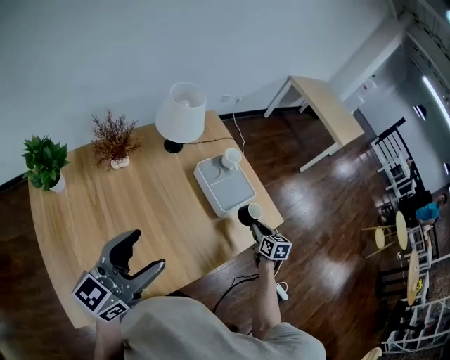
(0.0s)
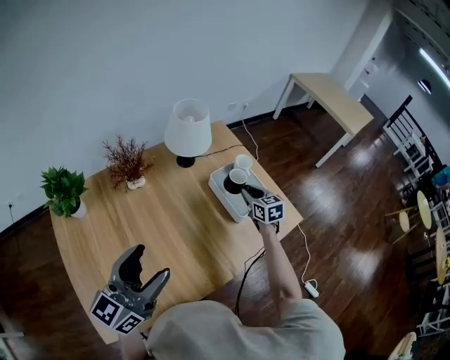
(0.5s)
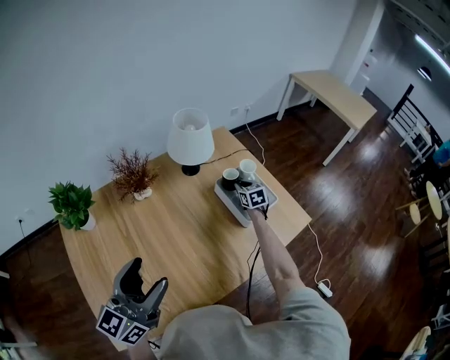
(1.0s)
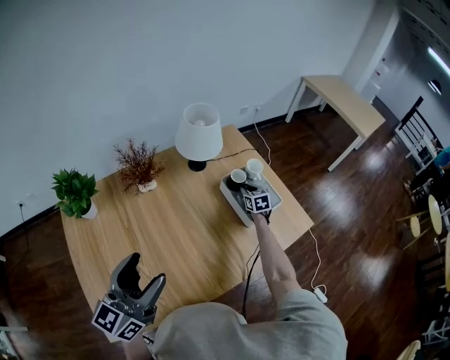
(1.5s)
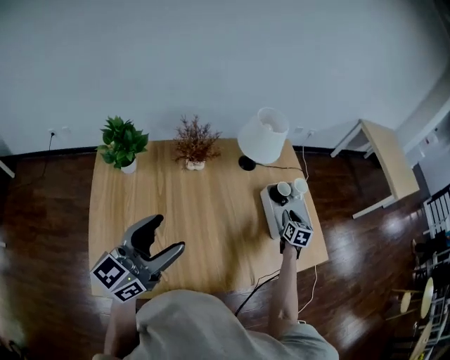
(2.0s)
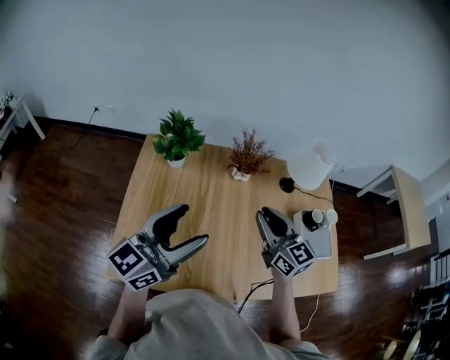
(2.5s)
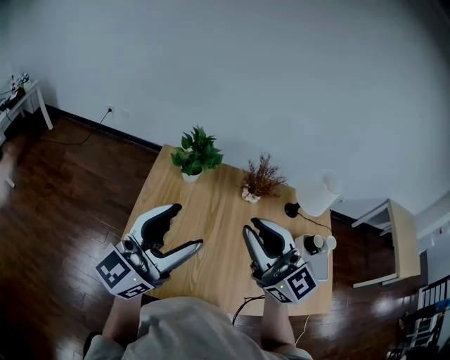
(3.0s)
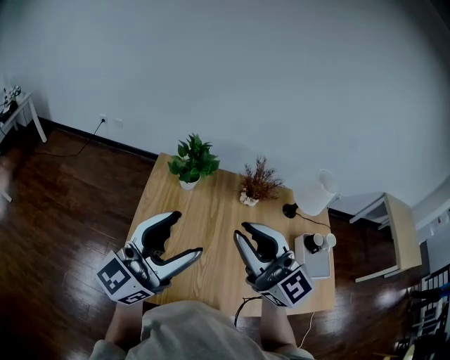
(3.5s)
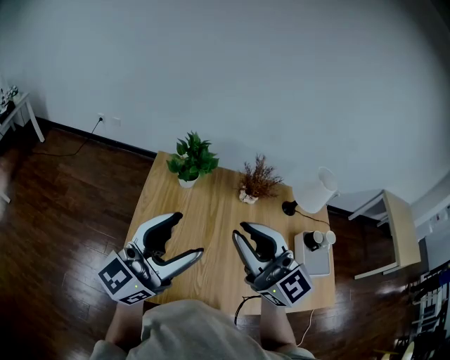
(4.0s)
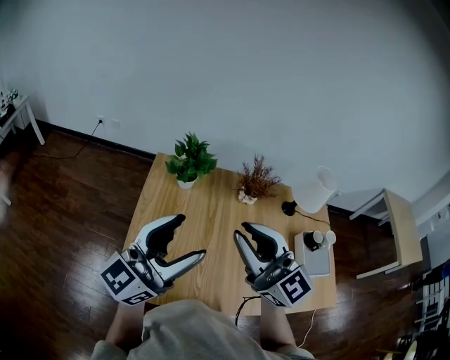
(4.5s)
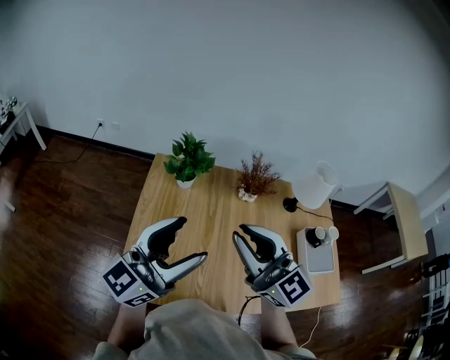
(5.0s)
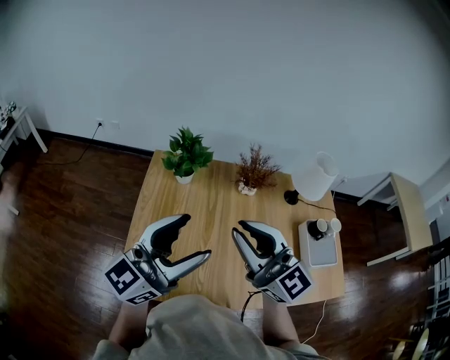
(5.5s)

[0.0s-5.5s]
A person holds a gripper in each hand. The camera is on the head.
0.0s to 2.0s: The left gripper heads to the left, covering about 10 cm. The right gripper heads to the left and forward, covering some 20 cm.
2.0s to 3.5s: The right gripper changes place by roughly 70 cm, and tips its fingers upward by roughly 40 degrees, while the left gripper changes place by some 20 cm, and turns by roughly 20 degrees.
3.5s to 5.5s: The left gripper travels to the right by about 5 cm.

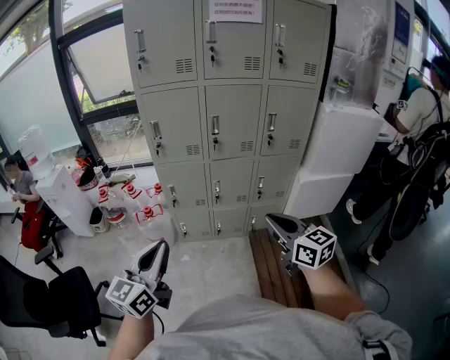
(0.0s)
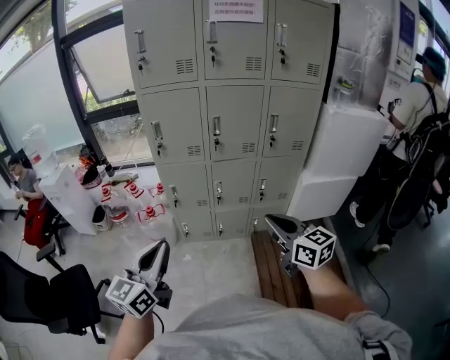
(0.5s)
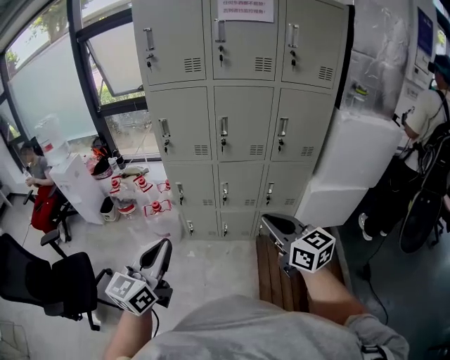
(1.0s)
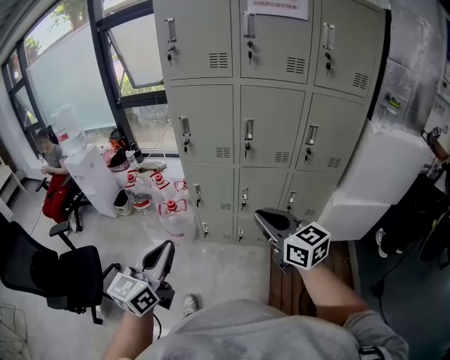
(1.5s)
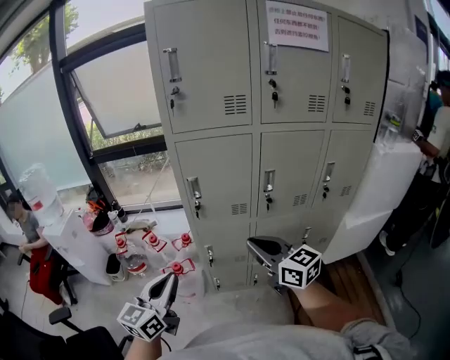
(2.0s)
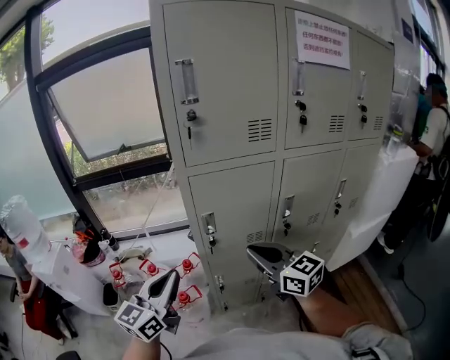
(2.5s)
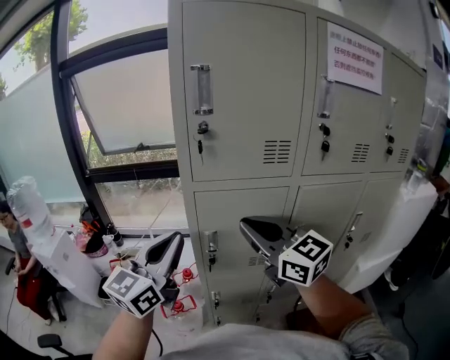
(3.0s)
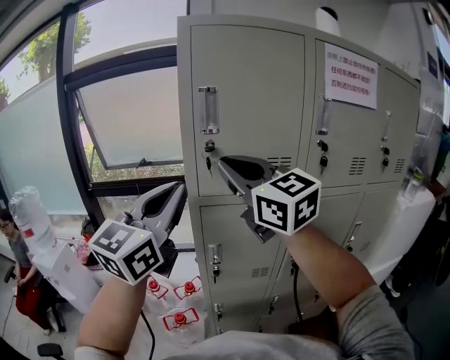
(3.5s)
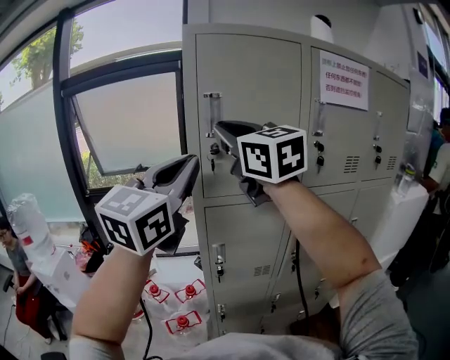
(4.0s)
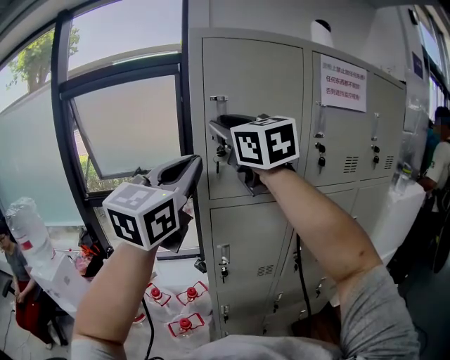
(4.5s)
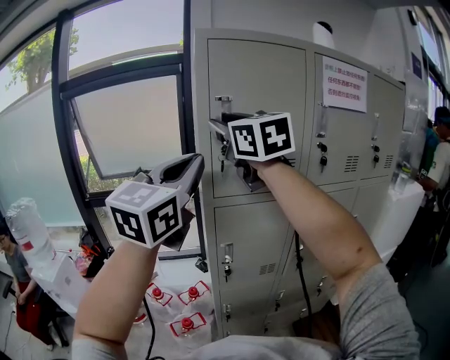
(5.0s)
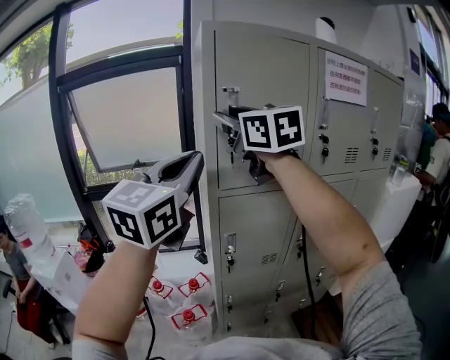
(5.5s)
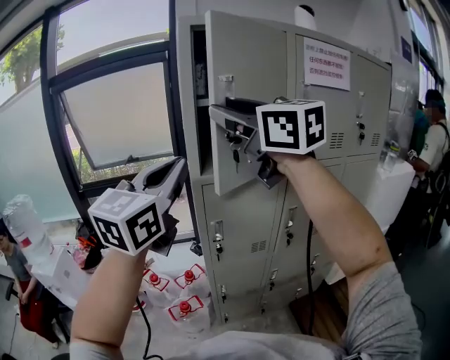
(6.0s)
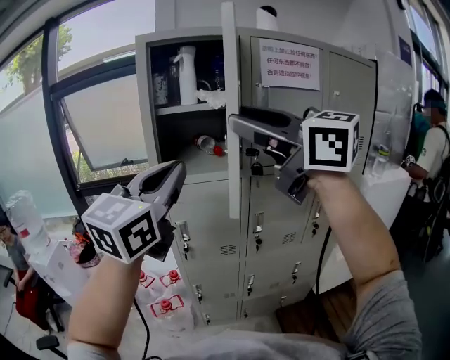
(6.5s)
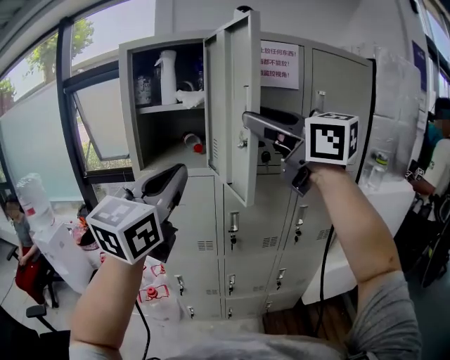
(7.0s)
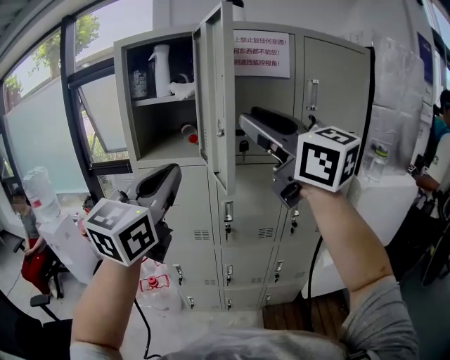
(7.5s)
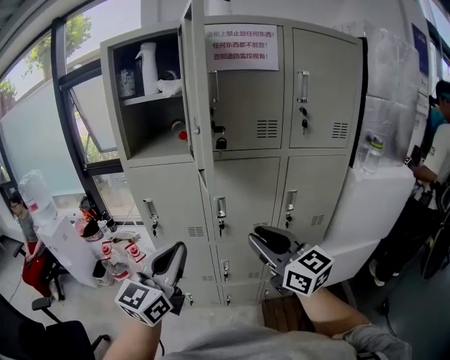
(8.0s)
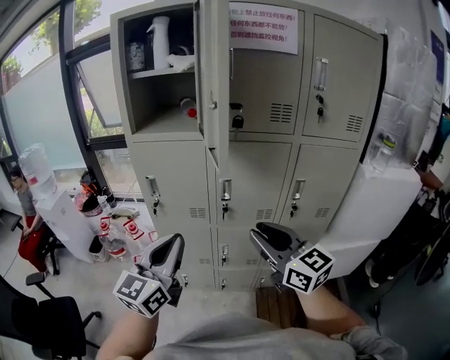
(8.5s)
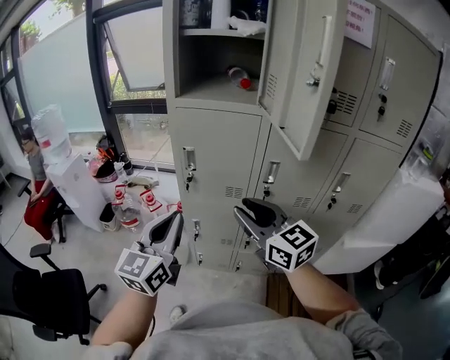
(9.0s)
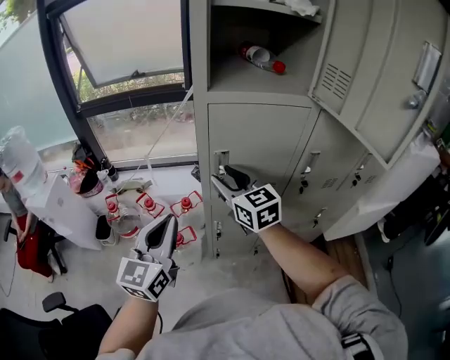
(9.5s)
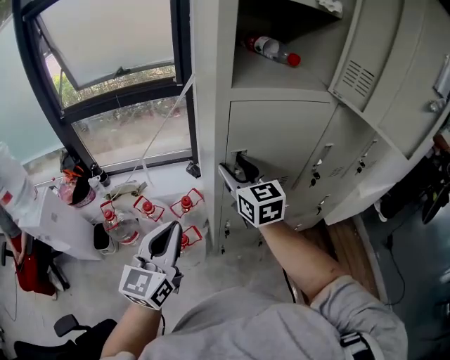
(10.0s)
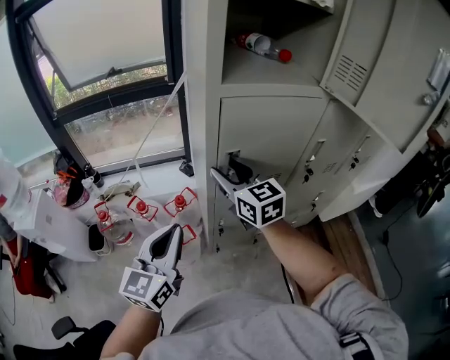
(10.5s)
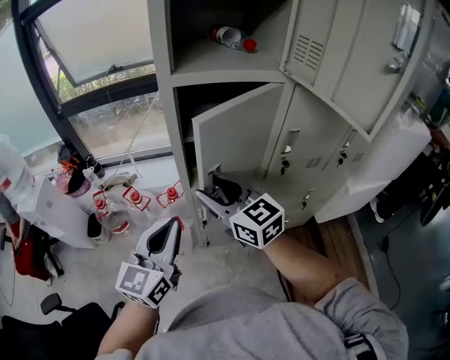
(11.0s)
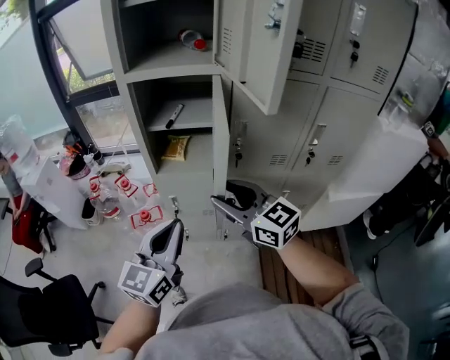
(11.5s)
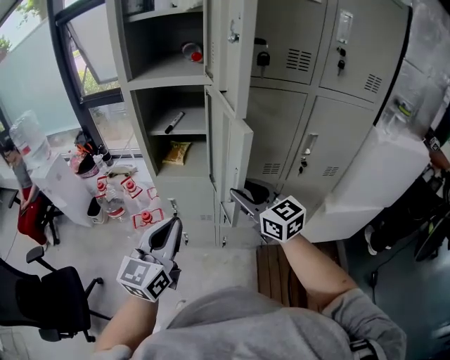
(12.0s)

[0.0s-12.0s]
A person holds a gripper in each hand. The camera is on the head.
0.0s to 2.0s: The grippers both shift forward and to the left by approximately 35 cm.
2.0s to 4.0s: The grippers both shift upward and forward by approximately 50 cm. The left gripper rotates approximately 30 degrees. The right gripper turns by approximately 30 degrees.
4.0s to 6.0s: The right gripper travels backward by roughly 5 cm, and opens up. Meanwhile the left gripper ends up some 5 cm from where it was.
6.0s to 8.0s: The grippers both shift to the right, downward and backward by some 40 cm.
8.0s to 10.0s: The pair of grippers is taken some 40 cm. The right gripper rotates some 30 degrees, and opens its fingers.
10.0s to 12.0s: The grippers both shift to the right and backward by some 40 cm. The right gripper turns by about 30 degrees.

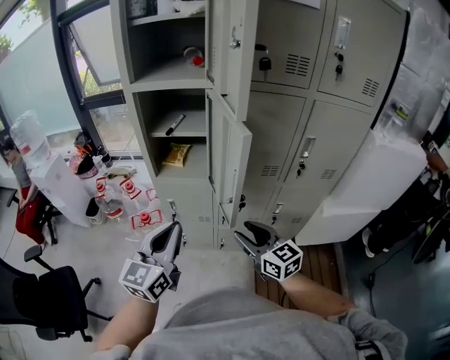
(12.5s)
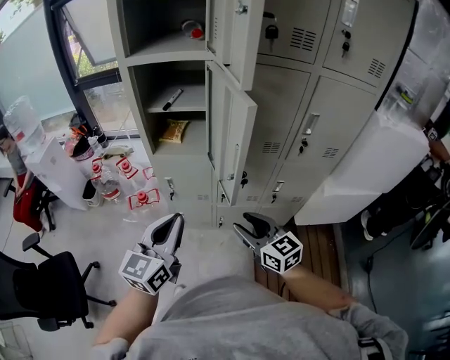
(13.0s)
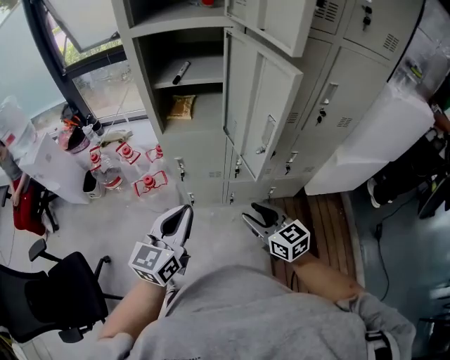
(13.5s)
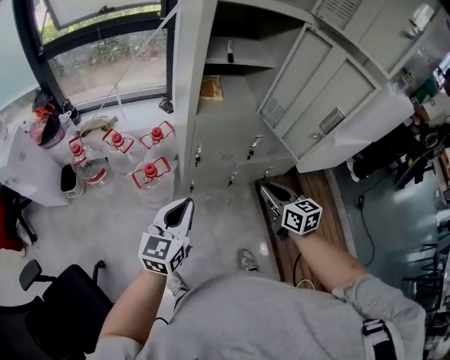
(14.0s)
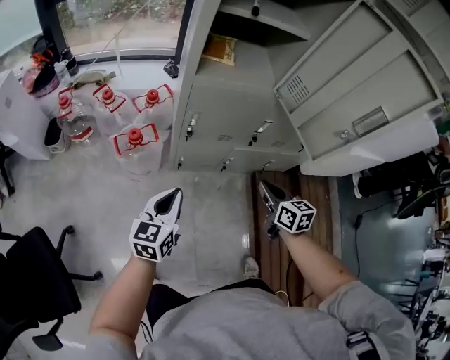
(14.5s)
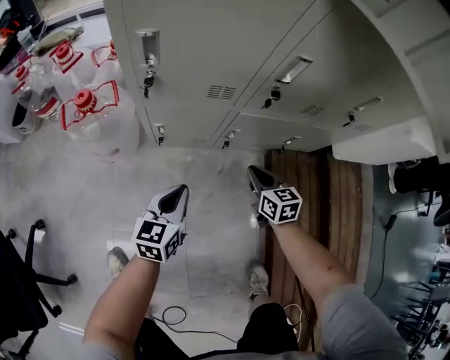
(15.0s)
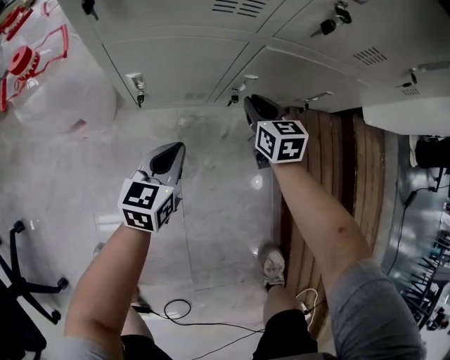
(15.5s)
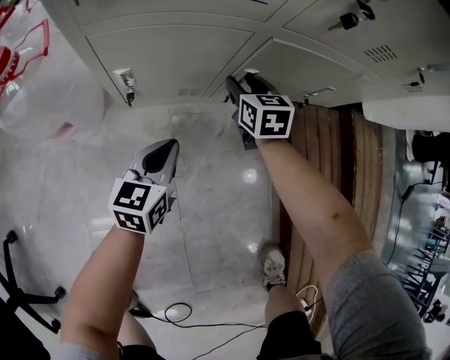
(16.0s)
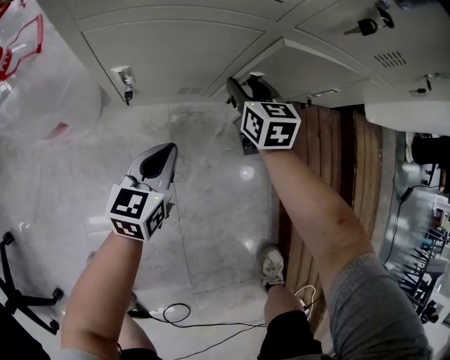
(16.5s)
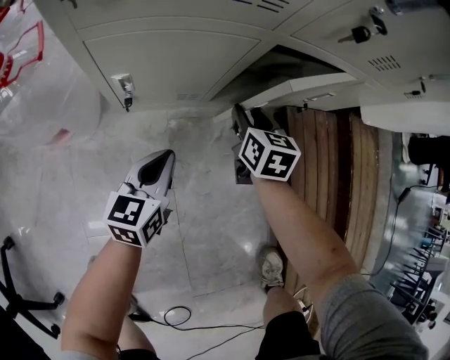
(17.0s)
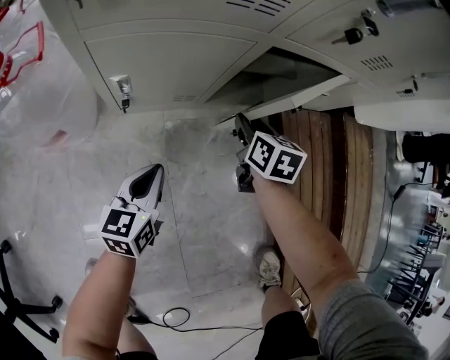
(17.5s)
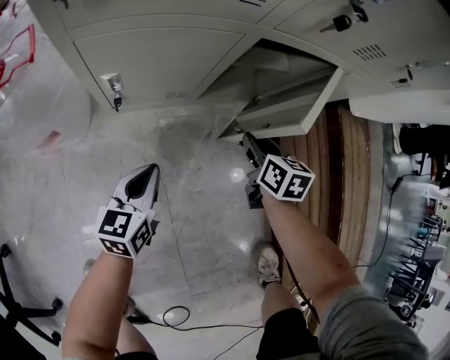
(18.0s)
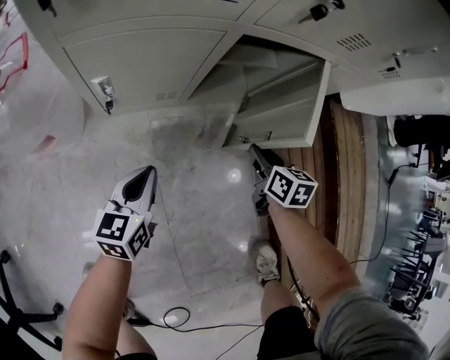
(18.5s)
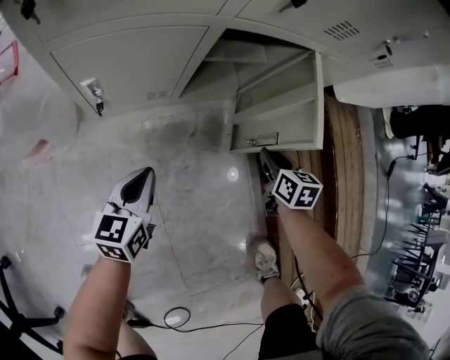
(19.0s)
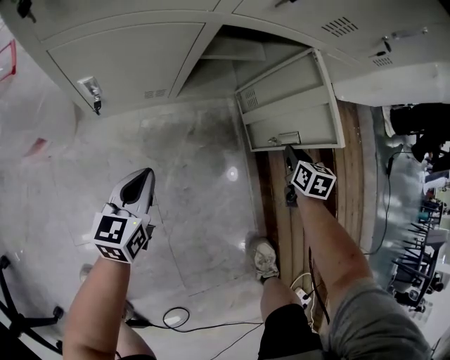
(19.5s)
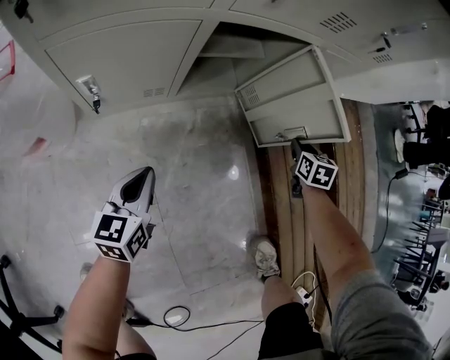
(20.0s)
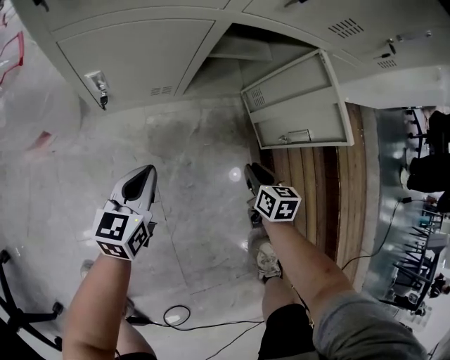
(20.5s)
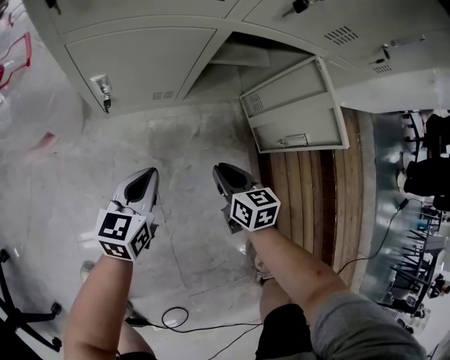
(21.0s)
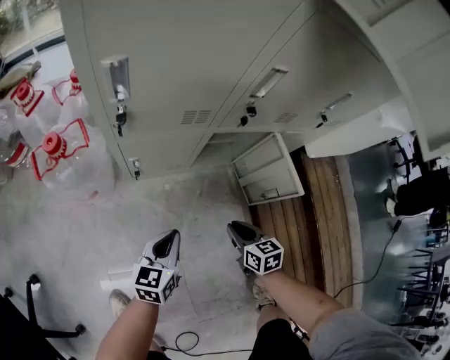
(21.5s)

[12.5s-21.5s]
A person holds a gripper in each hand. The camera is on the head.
12.5s to 14.5s: The grippers both shift downward and to the left by about 35 cm. The right gripper swivels roughly 30 degrees, and closes; the left gripper changes its angle by approximately 20 degrees.
14.5s to 17.0s: Both grippers move downward, approximately 50 cm. The right gripper opens.
17.0s to 19.5s: The right gripper moves to the right, approximately 30 cm, and turns by some 20 degrees; the left gripper changes place by roughly 5 cm.
19.5s to 21.5s: The right gripper heads to the left, backward and upward, covering approximately 30 cm, and turns by about 30 degrees. The left gripper shifts about 15 cm upward.
